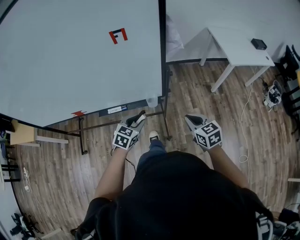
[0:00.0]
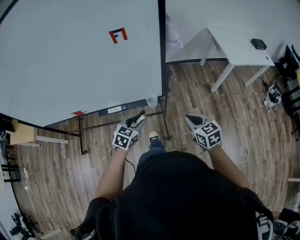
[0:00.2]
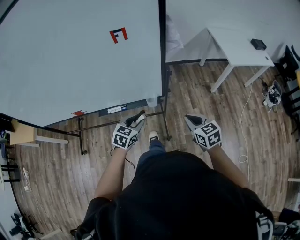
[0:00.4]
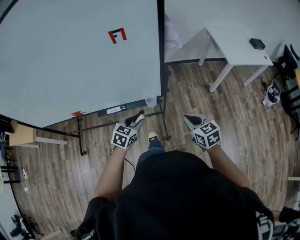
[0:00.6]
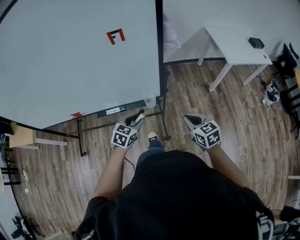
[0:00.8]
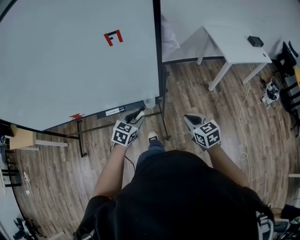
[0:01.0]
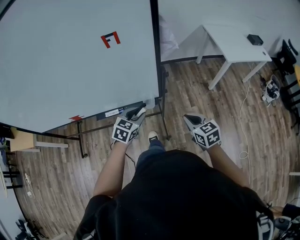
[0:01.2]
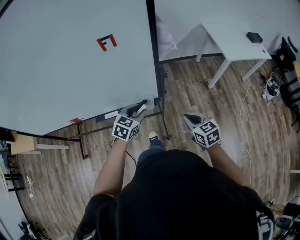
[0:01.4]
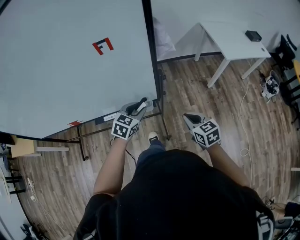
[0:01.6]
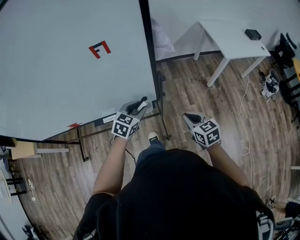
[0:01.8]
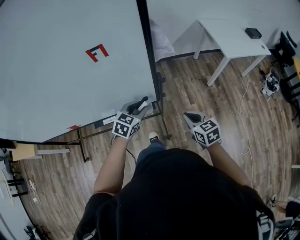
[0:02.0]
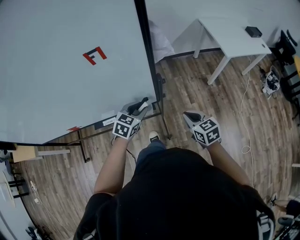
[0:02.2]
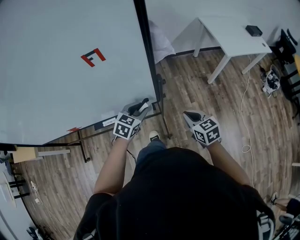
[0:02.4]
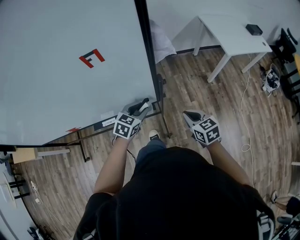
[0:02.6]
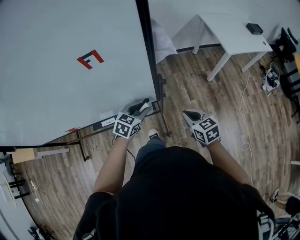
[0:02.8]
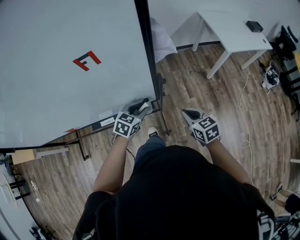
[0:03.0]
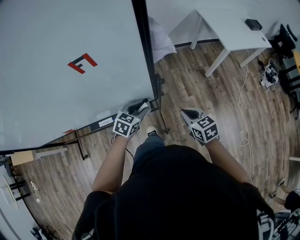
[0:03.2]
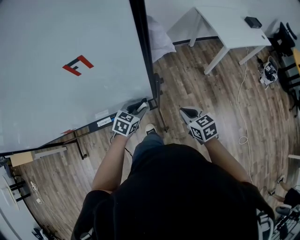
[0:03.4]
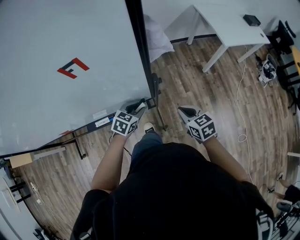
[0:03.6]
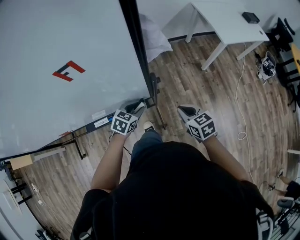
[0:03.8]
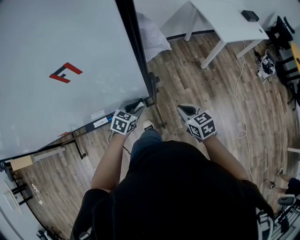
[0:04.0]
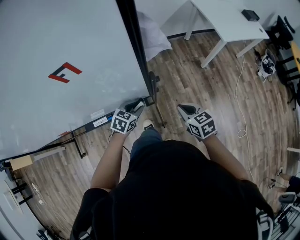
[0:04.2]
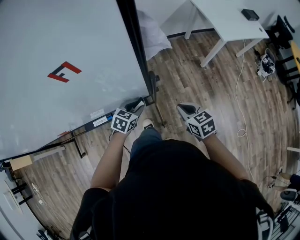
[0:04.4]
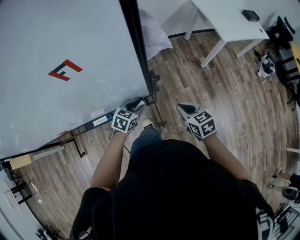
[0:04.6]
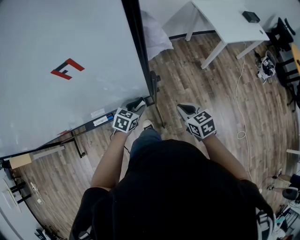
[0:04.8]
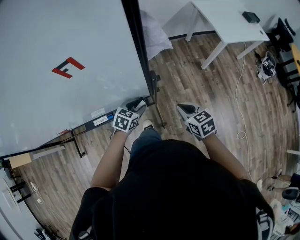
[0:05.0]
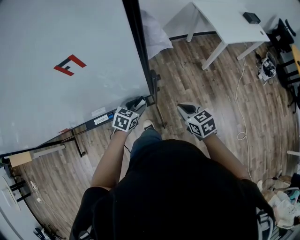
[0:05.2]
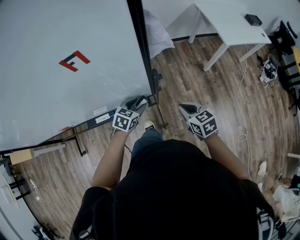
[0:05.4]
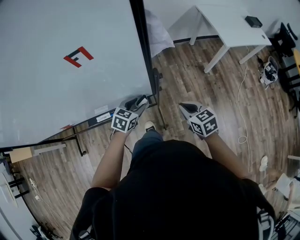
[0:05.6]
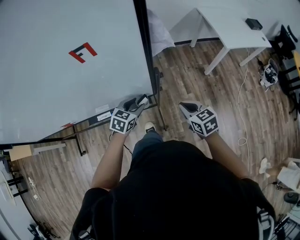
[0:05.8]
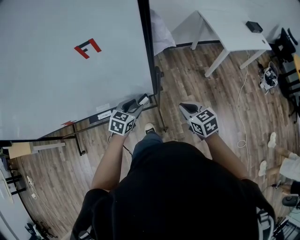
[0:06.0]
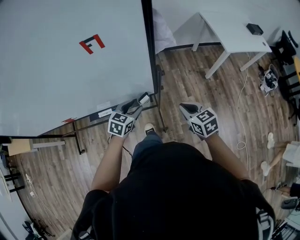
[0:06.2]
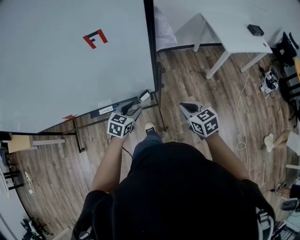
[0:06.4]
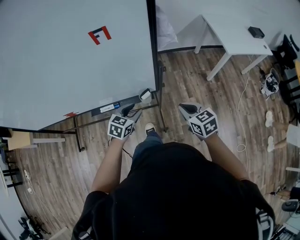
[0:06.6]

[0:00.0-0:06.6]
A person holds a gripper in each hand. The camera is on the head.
0:00.0 to 0:01.6: The left gripper goes about 10 cm forward.
0:01.6 to 0:03.2: The left gripper travels downward and forward by roughly 10 cm, while the right gripper is displaced forward by approximately 5 cm.
0:03.2 to 0:05.0: The left gripper travels downward by about 5 cm.
0:05.0 to 0:06.6: The two grippers go roughly 10 cm backward and upward.

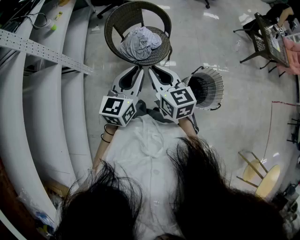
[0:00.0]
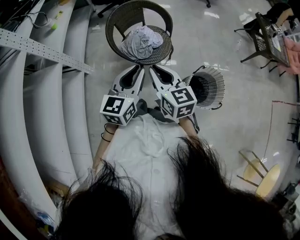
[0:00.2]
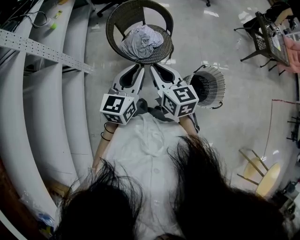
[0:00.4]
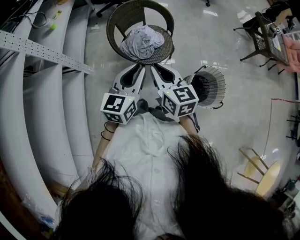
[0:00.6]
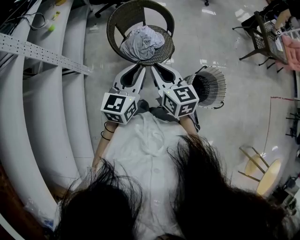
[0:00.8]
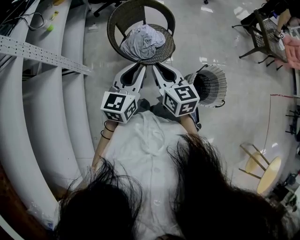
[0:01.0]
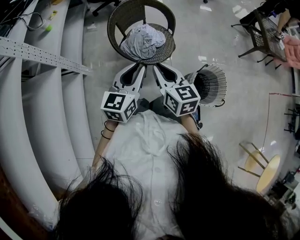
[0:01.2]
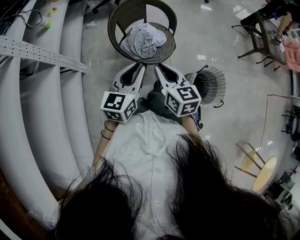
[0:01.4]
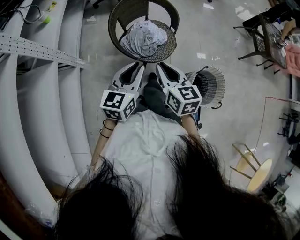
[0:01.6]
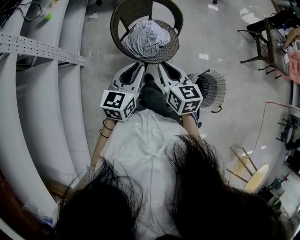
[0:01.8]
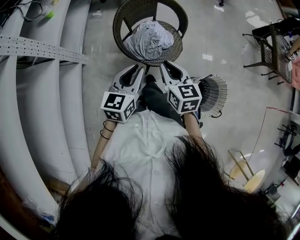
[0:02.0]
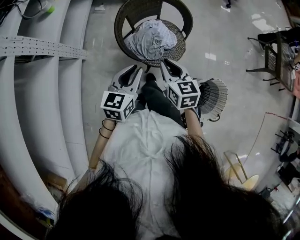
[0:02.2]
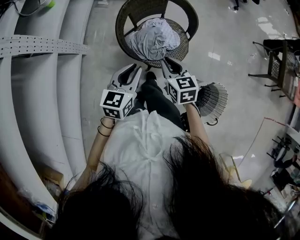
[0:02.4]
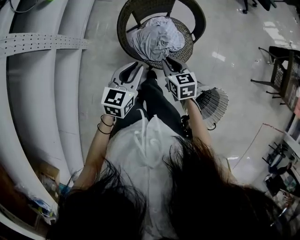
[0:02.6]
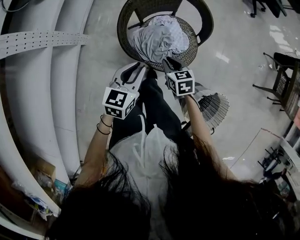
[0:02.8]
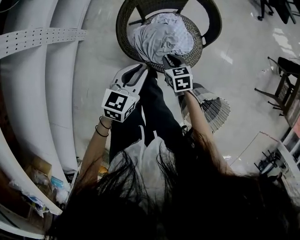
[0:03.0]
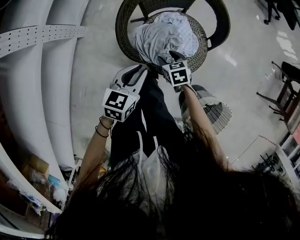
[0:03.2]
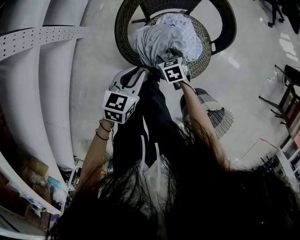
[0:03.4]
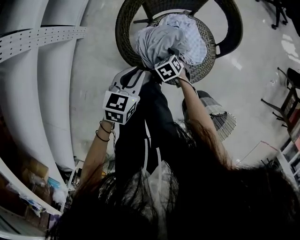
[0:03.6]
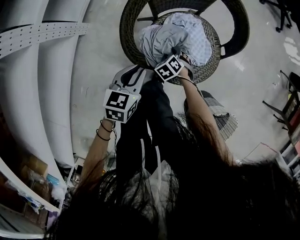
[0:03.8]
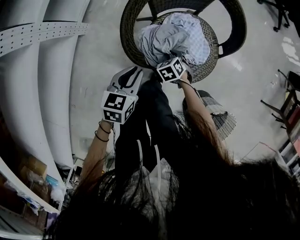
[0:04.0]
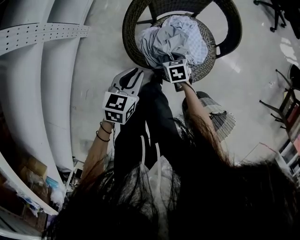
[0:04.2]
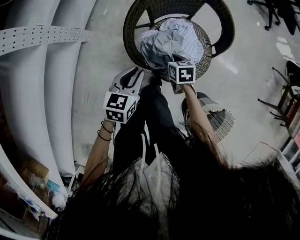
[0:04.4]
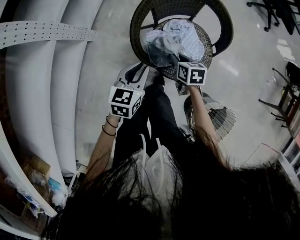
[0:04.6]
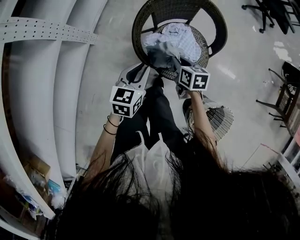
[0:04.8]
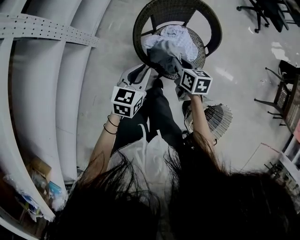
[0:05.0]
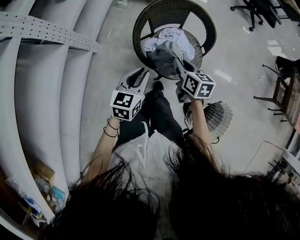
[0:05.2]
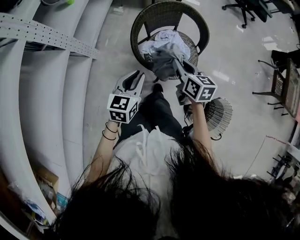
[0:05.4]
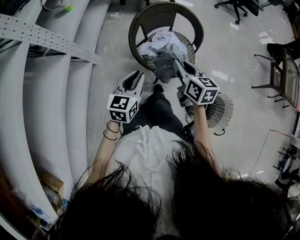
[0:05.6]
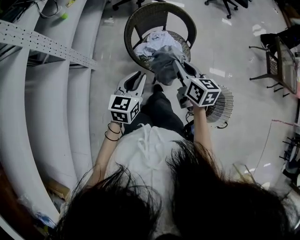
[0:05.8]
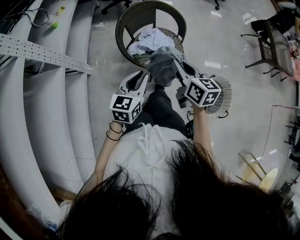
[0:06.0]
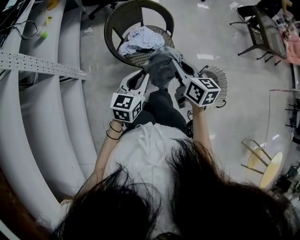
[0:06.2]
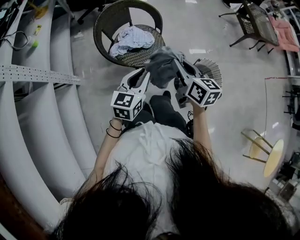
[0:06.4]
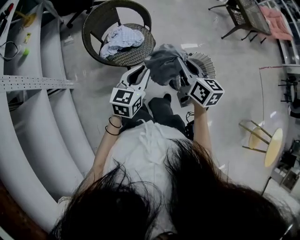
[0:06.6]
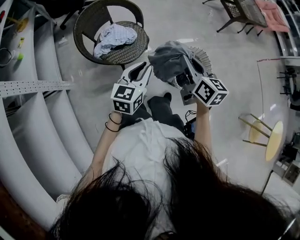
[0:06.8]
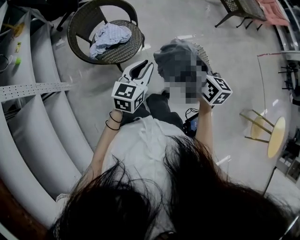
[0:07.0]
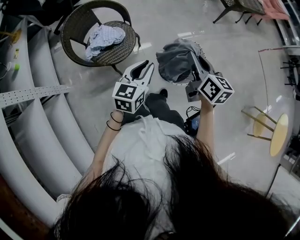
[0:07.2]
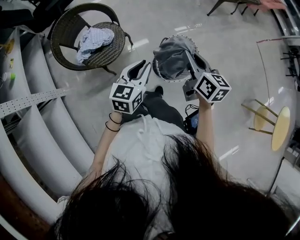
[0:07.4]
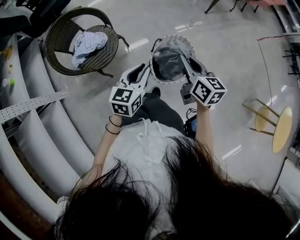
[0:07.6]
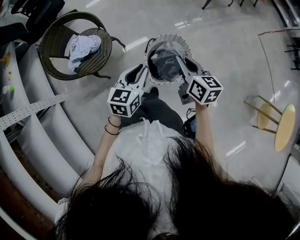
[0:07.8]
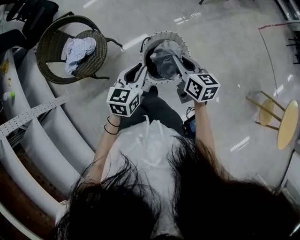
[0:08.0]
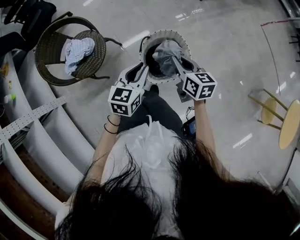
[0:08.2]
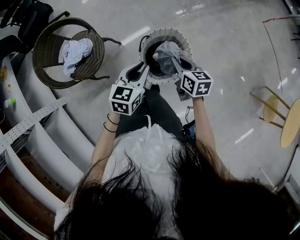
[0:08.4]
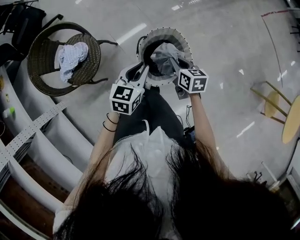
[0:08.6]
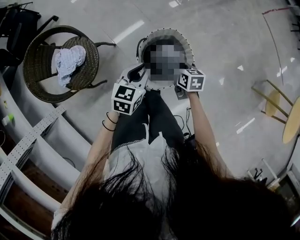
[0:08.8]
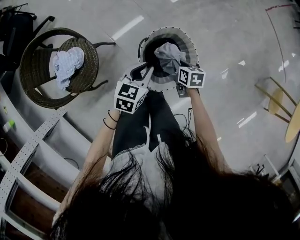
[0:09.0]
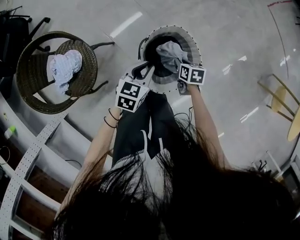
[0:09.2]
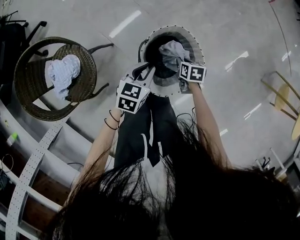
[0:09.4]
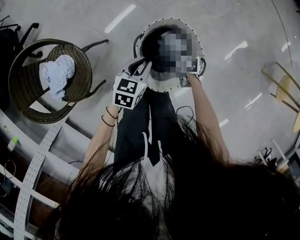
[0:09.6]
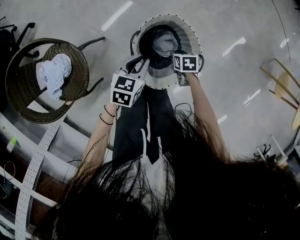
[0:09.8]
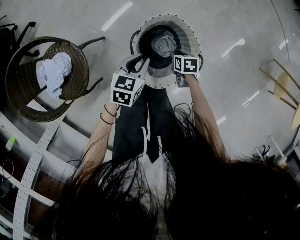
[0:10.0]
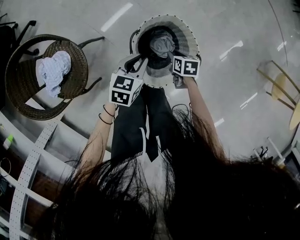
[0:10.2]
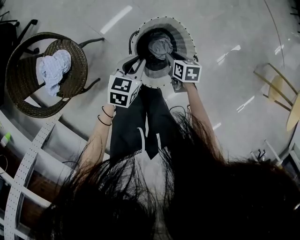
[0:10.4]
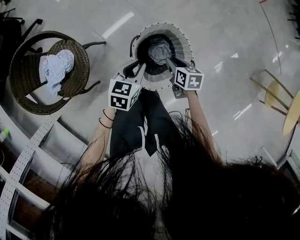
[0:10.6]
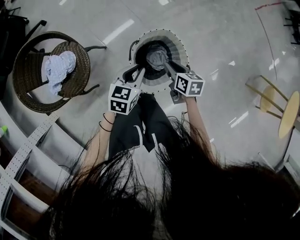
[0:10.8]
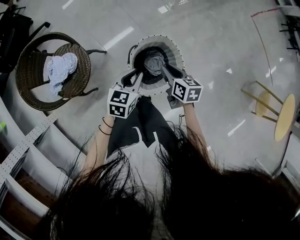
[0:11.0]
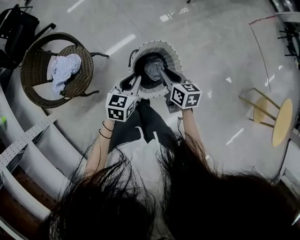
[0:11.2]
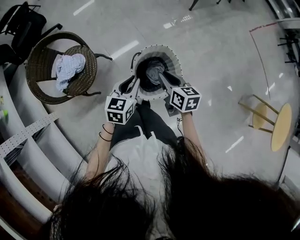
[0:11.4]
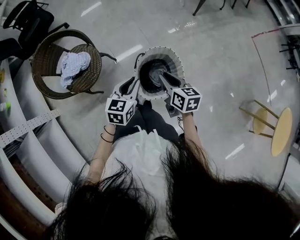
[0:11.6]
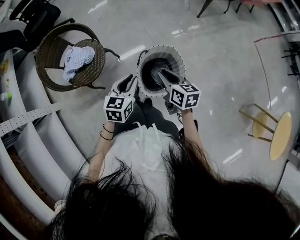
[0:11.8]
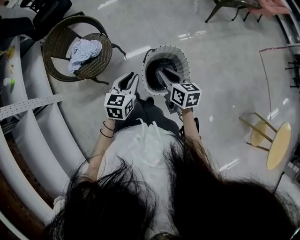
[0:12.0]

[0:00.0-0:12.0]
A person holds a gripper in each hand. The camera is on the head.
0:00.0 to 0:01.6: The left gripper travels to the left, forward and downward by some 15 cm; the right gripper travels forward, to the left and downward by roughly 10 cm.
0:01.6 to 0:03.0: The right gripper is displaced downward and forward by some 40 cm, and rotates approximately 40 degrees, while the left gripper goes roughly 25 cm downward and forward.
0:03.0 to 0:04.4: The right gripper moves approximately 20 cm downward and comes back, and opens, then closes once more, while the left gripper is displaced downward by approximately 10 cm.
0:04.4 to 0:06.0: The right gripper travels upward and backward by approximately 40 cm, and tilts its fingers some 40 degrees upward. Meanwhile the left gripper goes roughly 25 cm upward and backward, and turns by approximately 30 degrees.
0:06.0 to 0:07.6: The right gripper ends up roughly 40 cm from where it was, and turns by approximately 30 degrees, while the left gripper moves about 40 cm, and turns by about 30 degrees.
0:07.6 to 0:09.0: The right gripper is displaced downward by some 35 cm, and points its fingers roughly 30 degrees further downward. The left gripper moves downward, forward and to the right, some 25 cm, and changes its angle by roughly 30 degrees.
0:09.0 to 0:10.4: The left gripper is displaced downward by about 5 cm.
0:10.4 to 0:12.0: The grippers both shift upward by roughly 25 cm. The right gripper turns by about 40 degrees, while the left gripper turns by some 30 degrees.

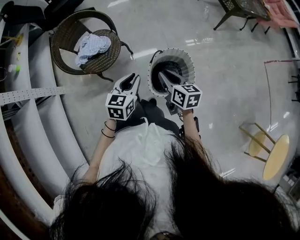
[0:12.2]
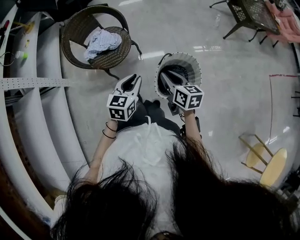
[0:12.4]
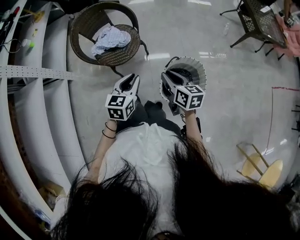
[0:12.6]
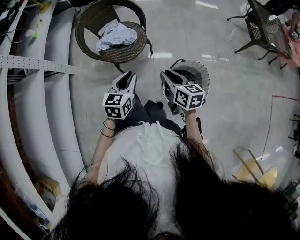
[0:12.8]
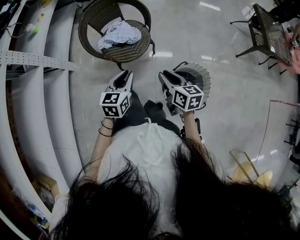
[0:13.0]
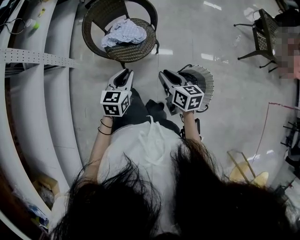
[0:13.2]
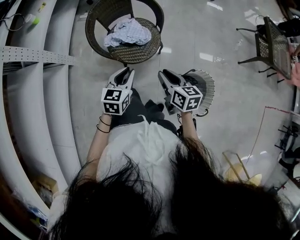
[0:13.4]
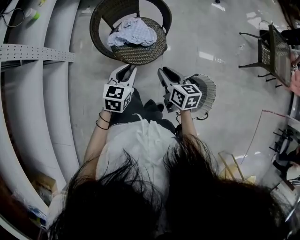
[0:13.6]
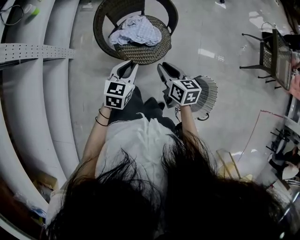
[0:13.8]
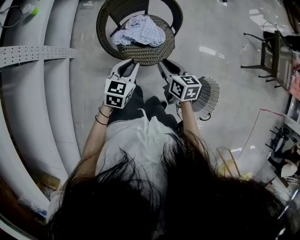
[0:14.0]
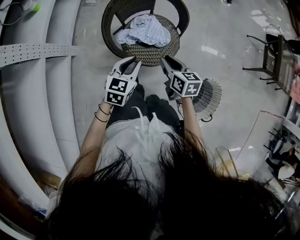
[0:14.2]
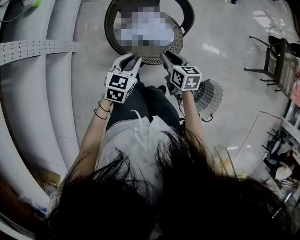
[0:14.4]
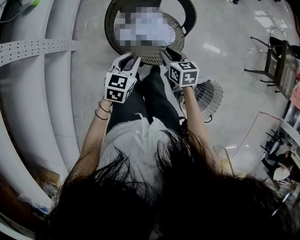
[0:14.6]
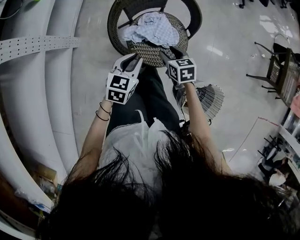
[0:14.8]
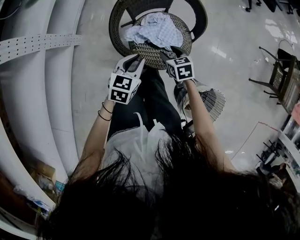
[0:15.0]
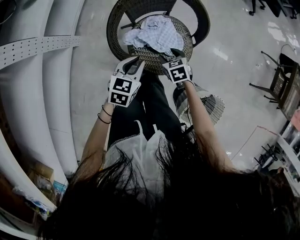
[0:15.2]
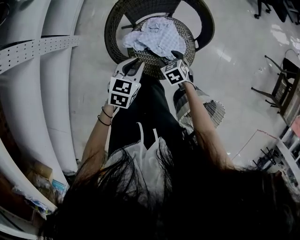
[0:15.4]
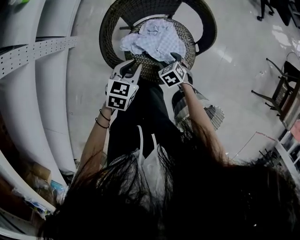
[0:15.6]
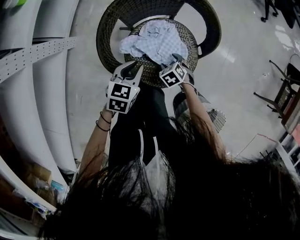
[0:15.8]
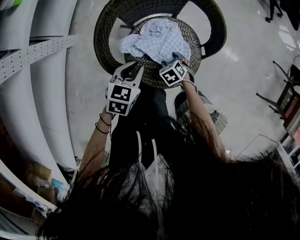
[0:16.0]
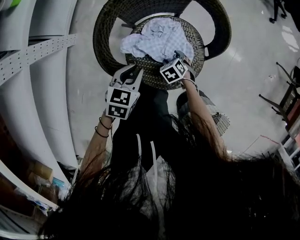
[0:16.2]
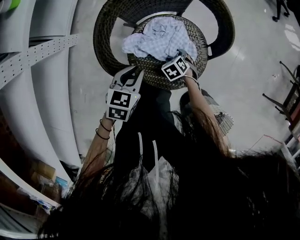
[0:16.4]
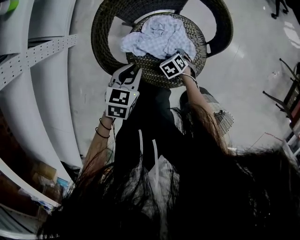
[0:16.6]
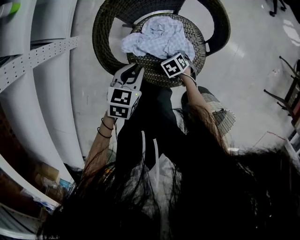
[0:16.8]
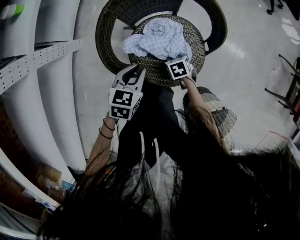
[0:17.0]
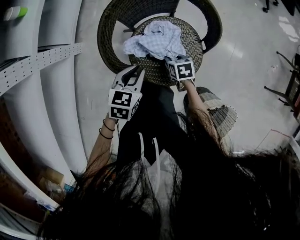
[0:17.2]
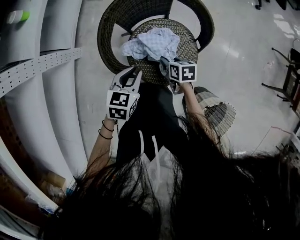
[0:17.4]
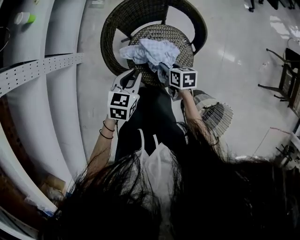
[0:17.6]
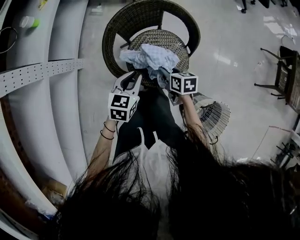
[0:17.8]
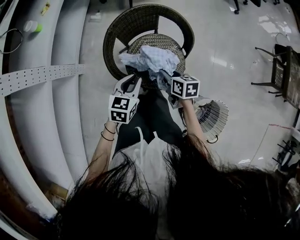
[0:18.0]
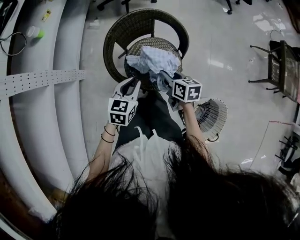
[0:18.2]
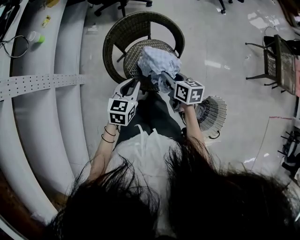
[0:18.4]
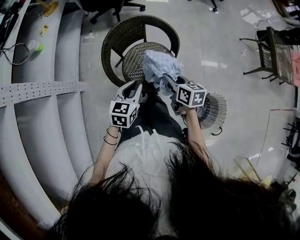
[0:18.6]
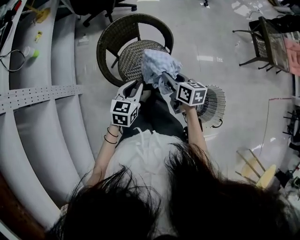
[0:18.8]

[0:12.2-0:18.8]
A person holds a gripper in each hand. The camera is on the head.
0:12.2 to 0:13.8: The two grippers go approximately 35 cm to the left and forward. The right gripper turns by some 20 degrees.
0:13.8 to 0:15.4: The right gripper moves downward and forward, approximately 30 cm, angles its fingers downward, by roughly 30 degrees, and opens up, while the left gripper shifts about 20 cm downward, forward and to the left.
0:15.4 to 0:17.2: The right gripper goes downward and returns, about 15 cm each way, swivels roughly 30 degrees, and closes.
0:17.2 to 0:18.8: The left gripper heads upward, covering some 20 cm, and changes its angle by roughly 20 degrees; the right gripper heads upward, covering some 35 cm, and rotates approximately 40 degrees.
